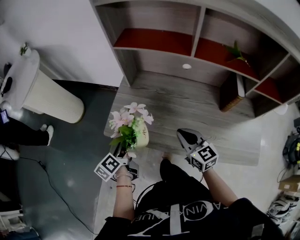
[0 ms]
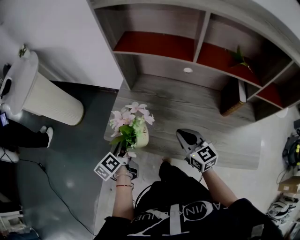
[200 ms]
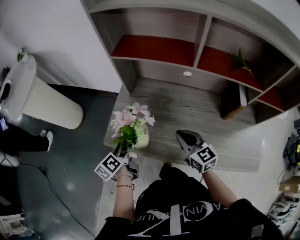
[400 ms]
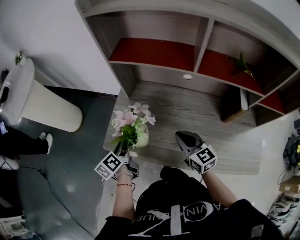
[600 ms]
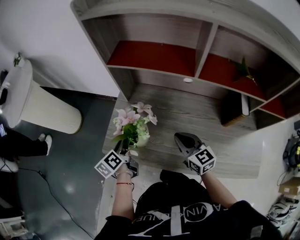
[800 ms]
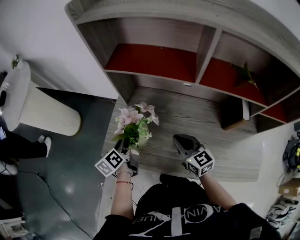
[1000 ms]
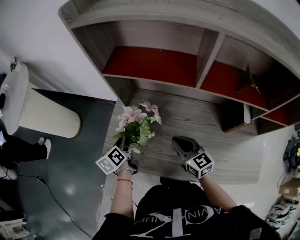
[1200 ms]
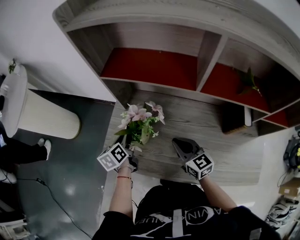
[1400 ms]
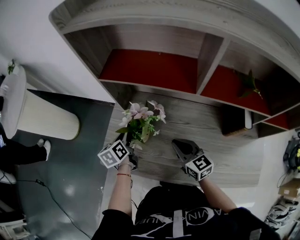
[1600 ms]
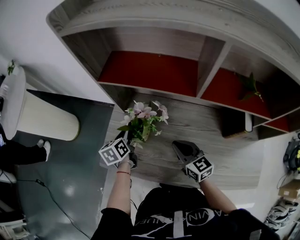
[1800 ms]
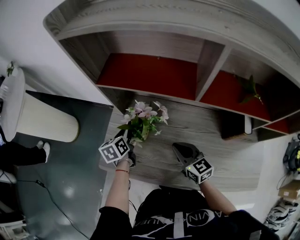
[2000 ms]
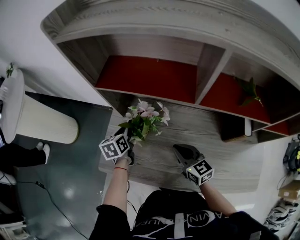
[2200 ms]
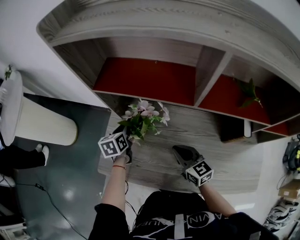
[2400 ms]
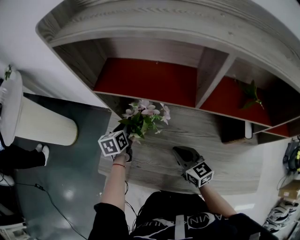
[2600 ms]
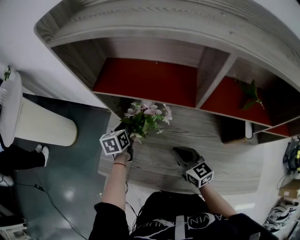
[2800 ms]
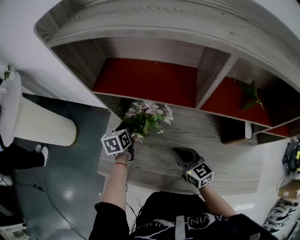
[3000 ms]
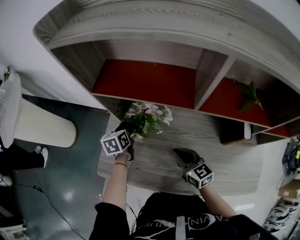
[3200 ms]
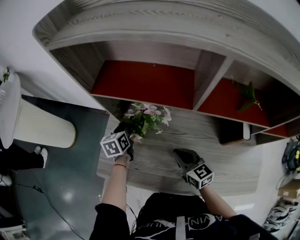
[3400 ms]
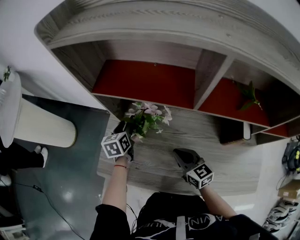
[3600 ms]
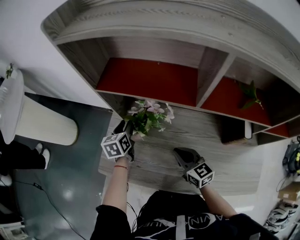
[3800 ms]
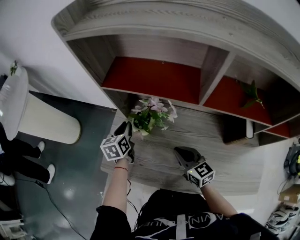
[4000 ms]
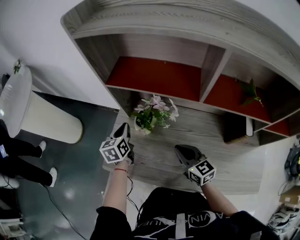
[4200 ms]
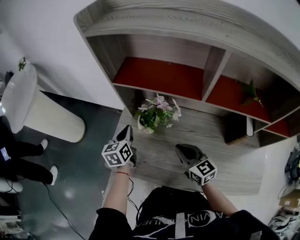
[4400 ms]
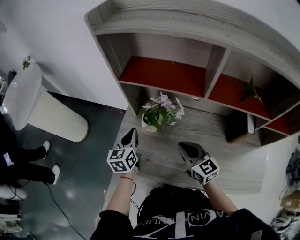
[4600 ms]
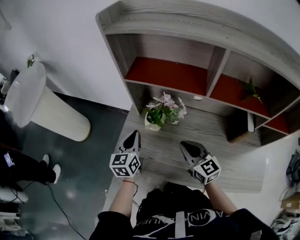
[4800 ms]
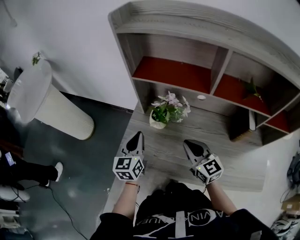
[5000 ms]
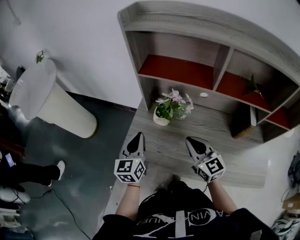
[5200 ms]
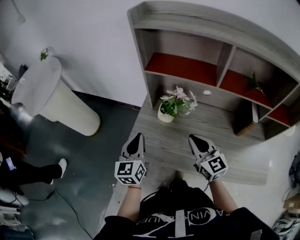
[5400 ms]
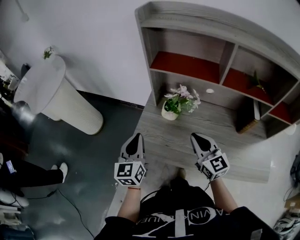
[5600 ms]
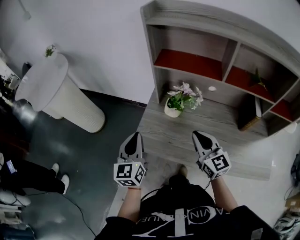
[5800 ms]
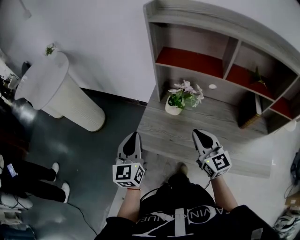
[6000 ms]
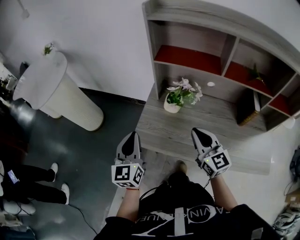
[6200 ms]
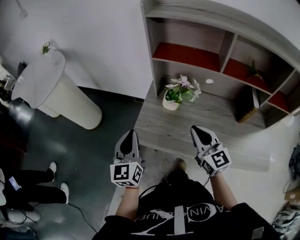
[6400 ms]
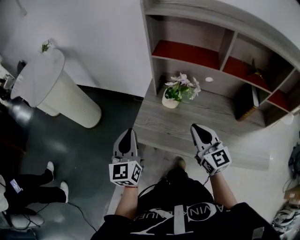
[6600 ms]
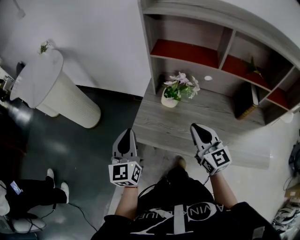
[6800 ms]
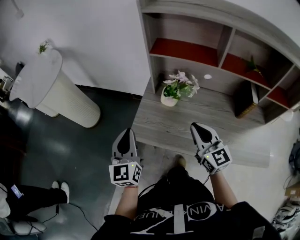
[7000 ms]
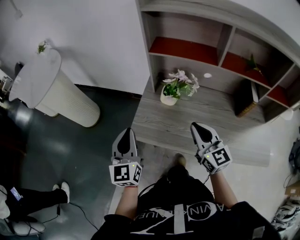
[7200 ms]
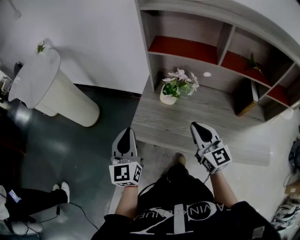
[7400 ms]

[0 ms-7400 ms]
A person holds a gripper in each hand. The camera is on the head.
0 ms to 1400 ms: The right gripper goes some 10 cm forward. The left gripper goes about 20 cm forward and to the right, and turns by some 20 degrees.
1400 ms to 3000 ms: The left gripper goes about 10 cm forward and to the right.
3000 ms to 4400 ms: The left gripper travels upward and backward by about 10 cm.
4400 ms to 6000 ms: The right gripper moves upward, to the left and backward, roughly 15 cm. The left gripper is displaced backward, upward and to the left by about 25 cm, and changes its angle by some 30 degrees.
6000 ms to 7400 ms: There are only small adjustments of the grippers.

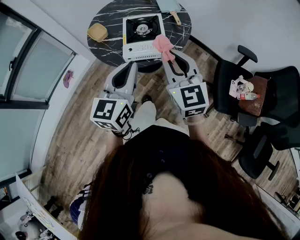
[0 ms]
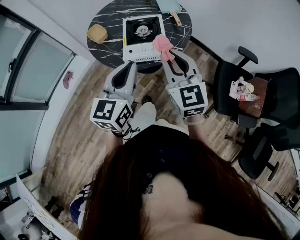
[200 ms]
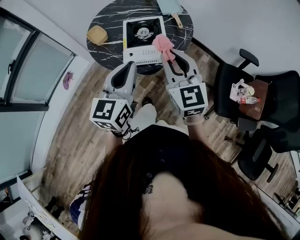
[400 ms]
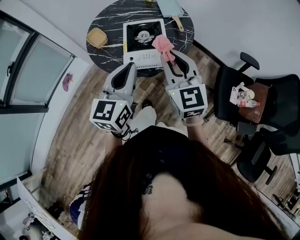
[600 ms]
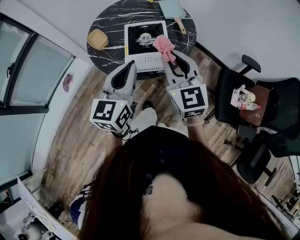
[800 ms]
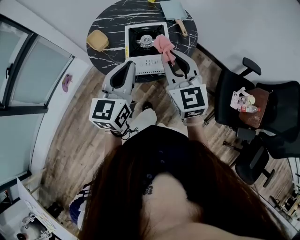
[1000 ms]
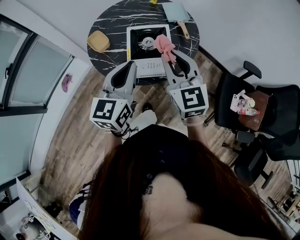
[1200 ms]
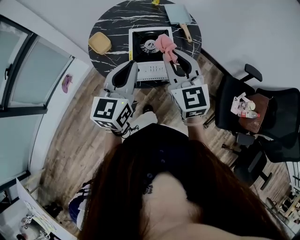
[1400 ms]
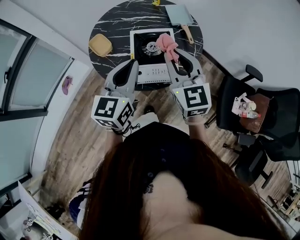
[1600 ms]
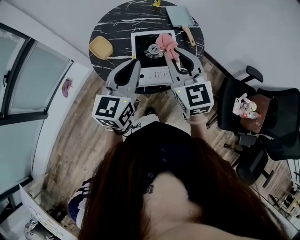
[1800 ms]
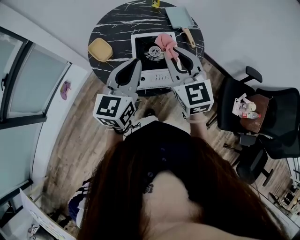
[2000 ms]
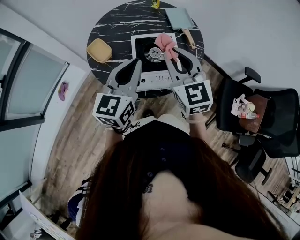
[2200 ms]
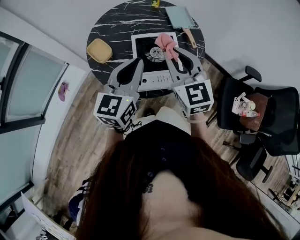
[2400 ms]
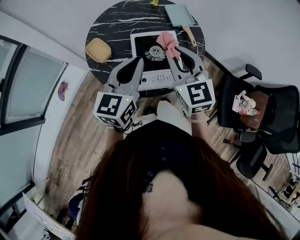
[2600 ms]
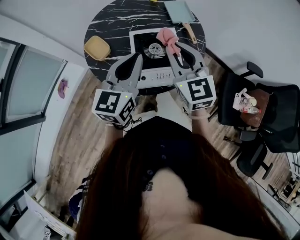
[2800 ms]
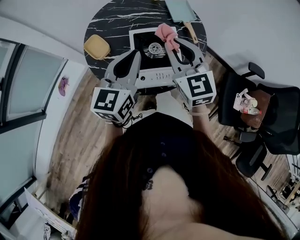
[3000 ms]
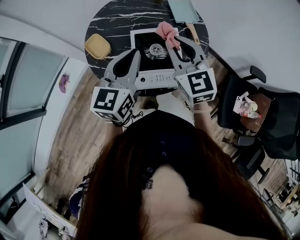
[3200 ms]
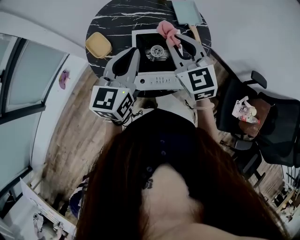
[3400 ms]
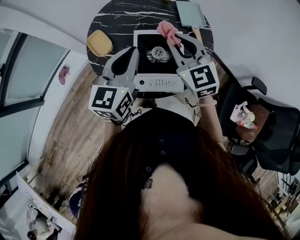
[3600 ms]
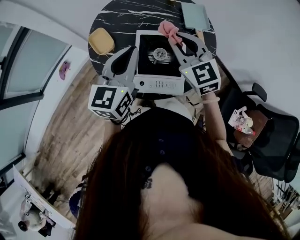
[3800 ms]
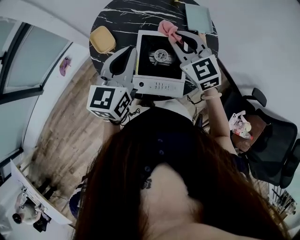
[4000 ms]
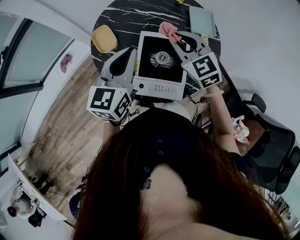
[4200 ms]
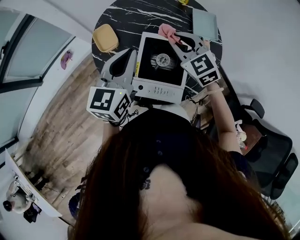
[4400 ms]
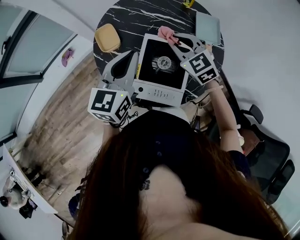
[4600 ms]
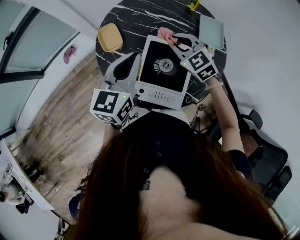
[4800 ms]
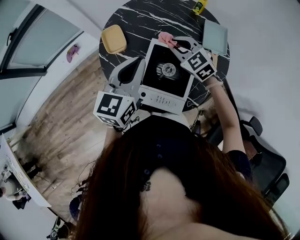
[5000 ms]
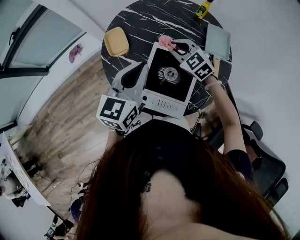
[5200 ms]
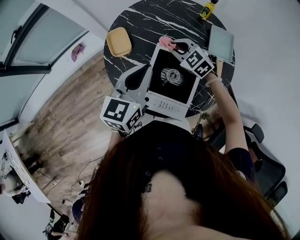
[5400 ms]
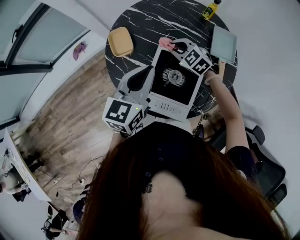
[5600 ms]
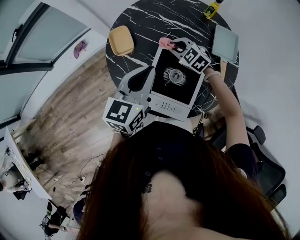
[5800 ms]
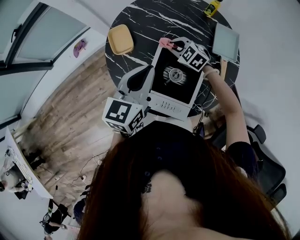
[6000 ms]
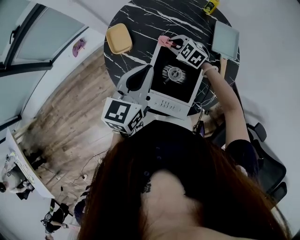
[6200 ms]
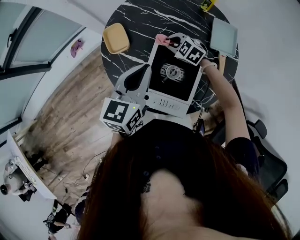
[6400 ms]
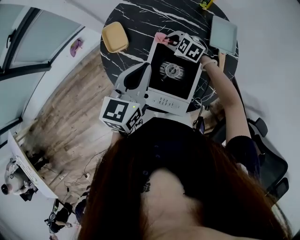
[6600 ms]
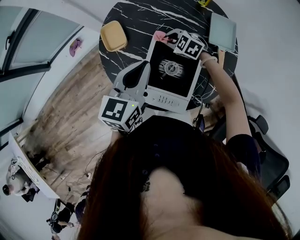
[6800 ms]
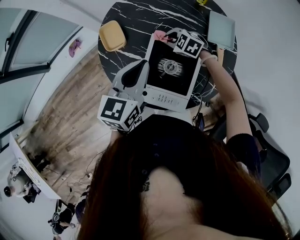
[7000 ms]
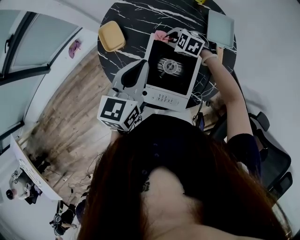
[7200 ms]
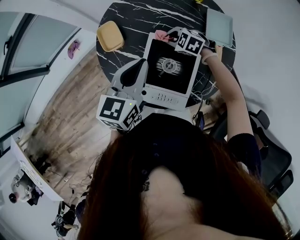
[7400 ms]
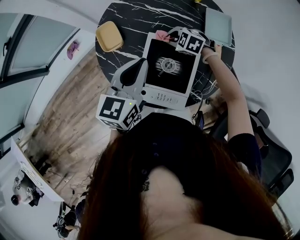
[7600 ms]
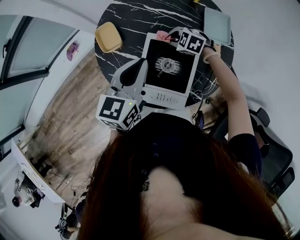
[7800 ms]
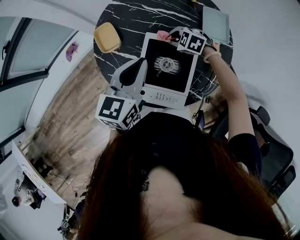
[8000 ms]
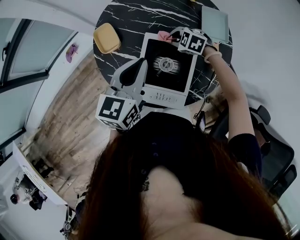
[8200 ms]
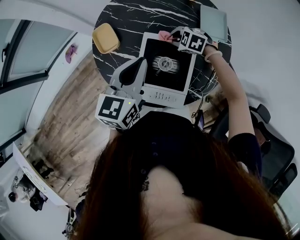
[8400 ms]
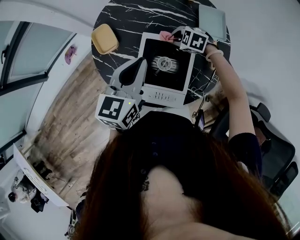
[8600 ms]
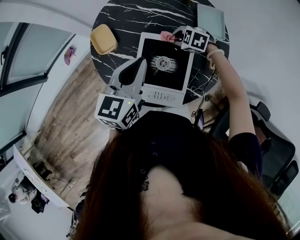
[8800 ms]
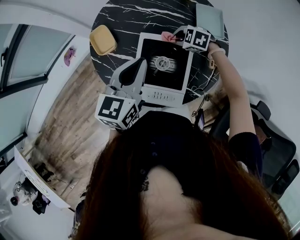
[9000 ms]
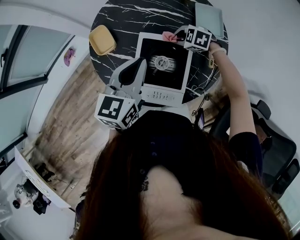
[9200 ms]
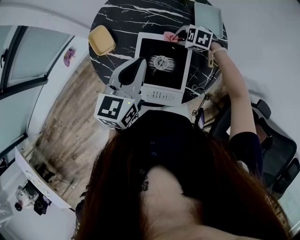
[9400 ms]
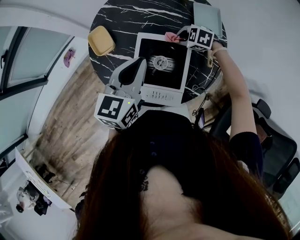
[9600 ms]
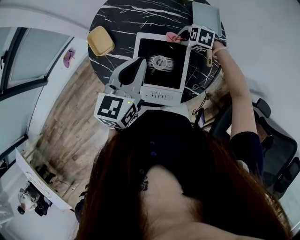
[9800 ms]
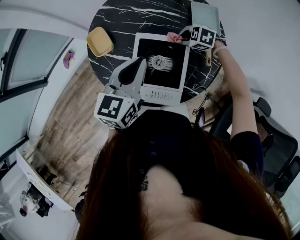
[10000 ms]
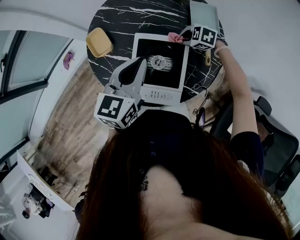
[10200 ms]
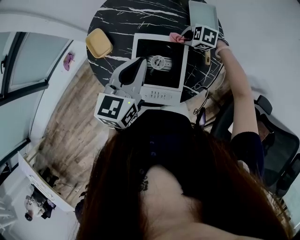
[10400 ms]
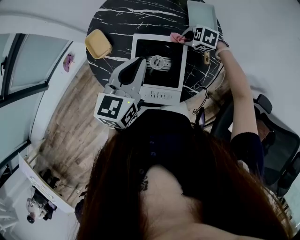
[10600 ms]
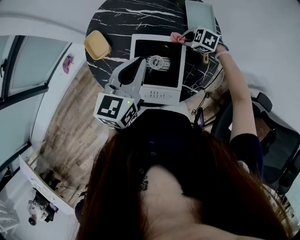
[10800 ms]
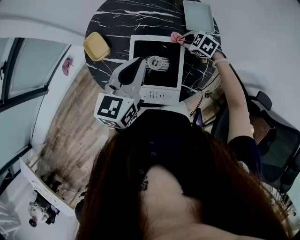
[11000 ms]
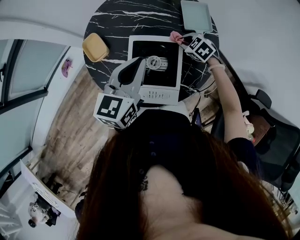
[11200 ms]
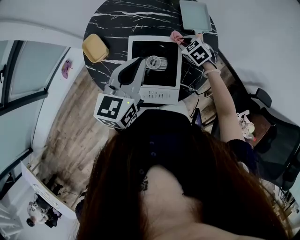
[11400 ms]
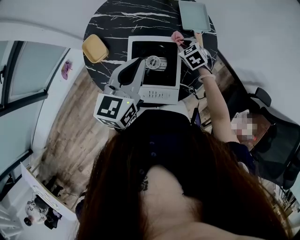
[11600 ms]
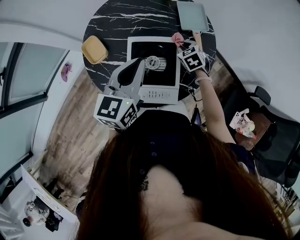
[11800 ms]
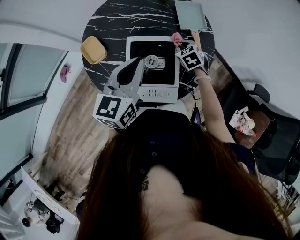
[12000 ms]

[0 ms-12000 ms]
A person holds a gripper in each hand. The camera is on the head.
0 ms to 1600 ms: The grippers both shift forward by some 20 cm.
1600 ms to 3000 ms: Both grippers move forward, approximately 10 cm.
3000 ms to 4400 ms: The right gripper is displaced forward and downward by about 15 cm, and turns by some 30 degrees; the left gripper is displaced forward by about 10 cm.
4400 ms to 6000 ms: The right gripper travels downward and forward by approximately 20 cm, and turns by approximately 30 degrees.
6000 ms to 7600 ms: The grippers make only small movements.
7600 ms to 9000 ms: The right gripper changes place by about 5 cm.
9000 ms to 10400 ms: The right gripper shifts approximately 5 cm to the right.
10400 ms to 12000 ms: The right gripper changes its angle by about 50 degrees.

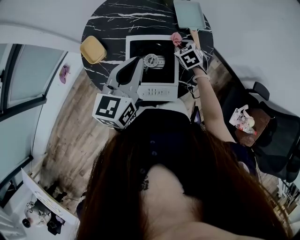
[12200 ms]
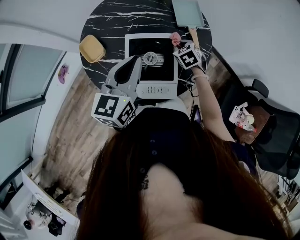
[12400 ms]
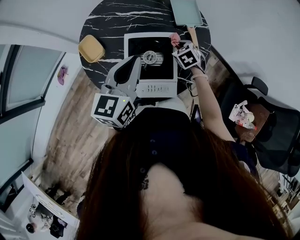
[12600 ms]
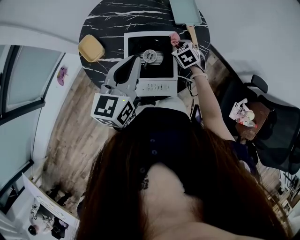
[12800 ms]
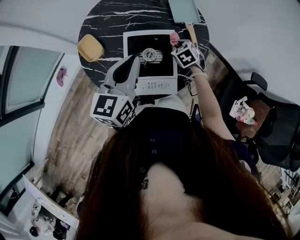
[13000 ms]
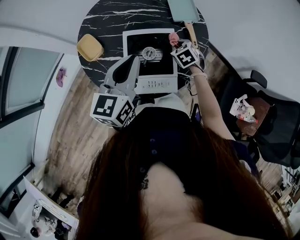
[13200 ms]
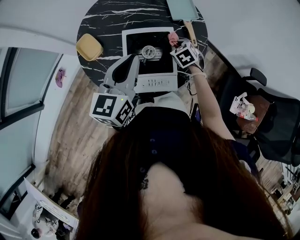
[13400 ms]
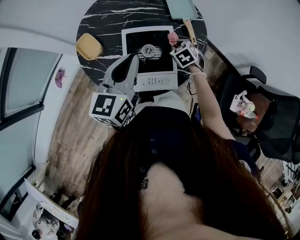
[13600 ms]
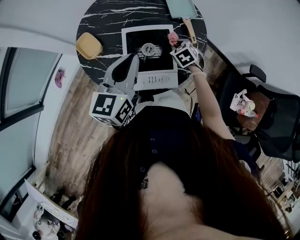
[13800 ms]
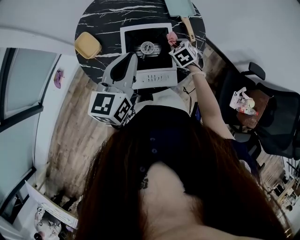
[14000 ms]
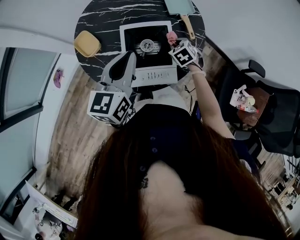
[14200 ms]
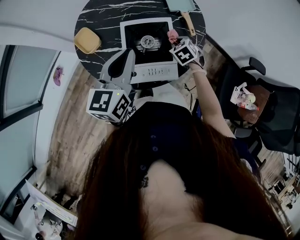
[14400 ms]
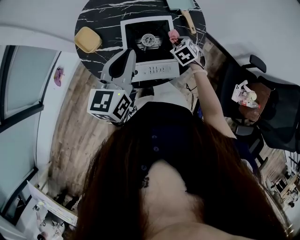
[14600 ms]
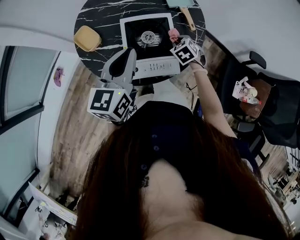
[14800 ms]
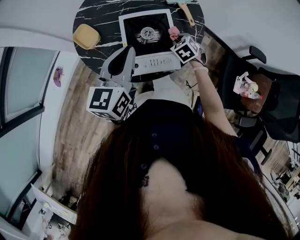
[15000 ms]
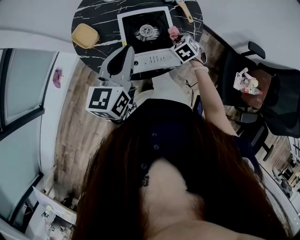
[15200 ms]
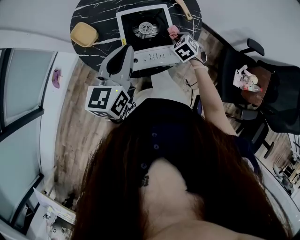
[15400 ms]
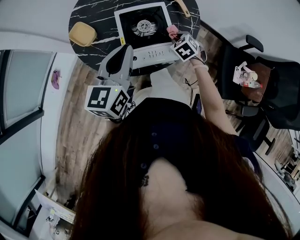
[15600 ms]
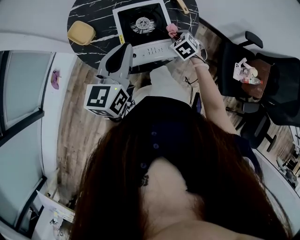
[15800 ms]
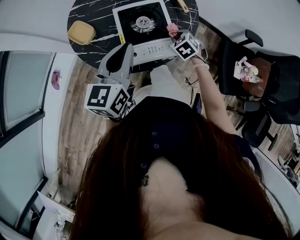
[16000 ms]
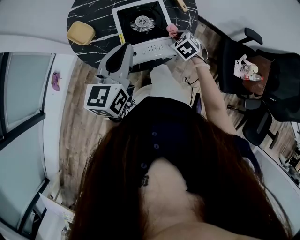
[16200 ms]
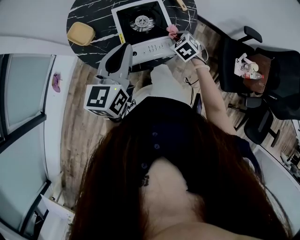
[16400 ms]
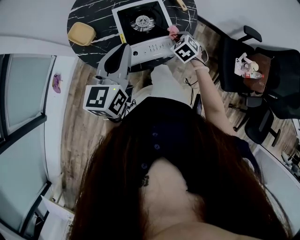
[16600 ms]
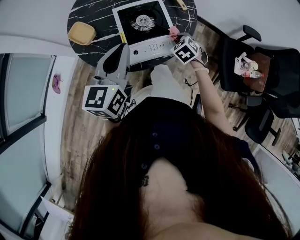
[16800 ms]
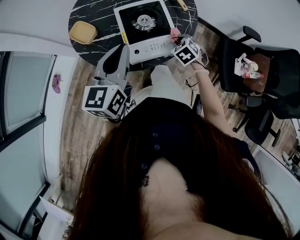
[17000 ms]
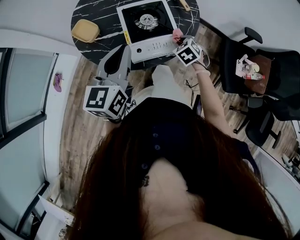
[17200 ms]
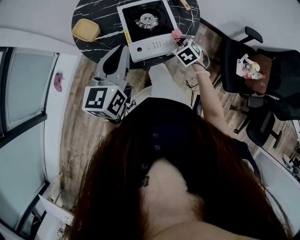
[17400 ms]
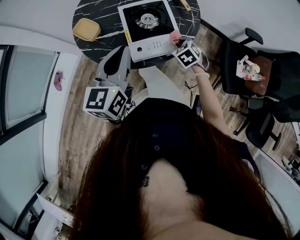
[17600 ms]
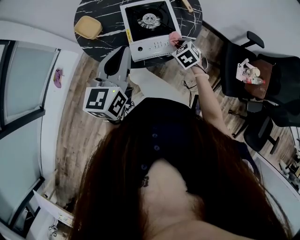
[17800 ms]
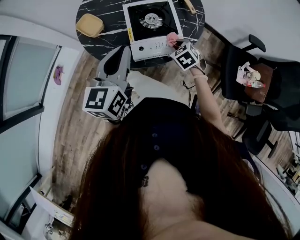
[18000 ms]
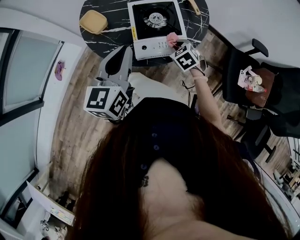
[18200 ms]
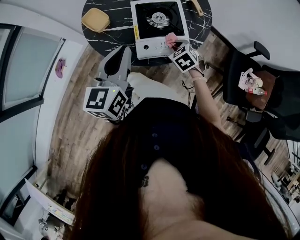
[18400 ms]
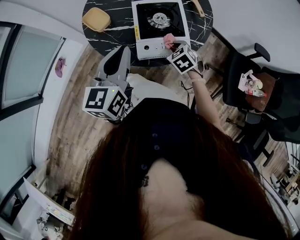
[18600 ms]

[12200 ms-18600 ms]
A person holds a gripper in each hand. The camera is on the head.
12200 ms to 13800 ms: The right gripper heads backward, covering about 5 cm.
13800 ms to 15400 ms: Both grippers travel together backward, approximately 10 cm.
15400 ms to 17000 ms: The right gripper is displaced backward by some 5 cm.
17000 ms to 18600 ms: The right gripper travels to the left by some 10 cm.
